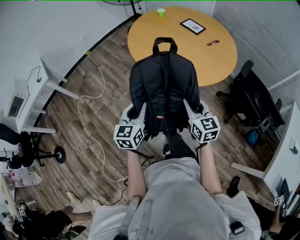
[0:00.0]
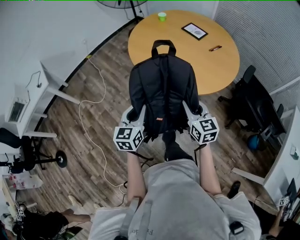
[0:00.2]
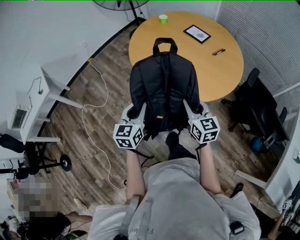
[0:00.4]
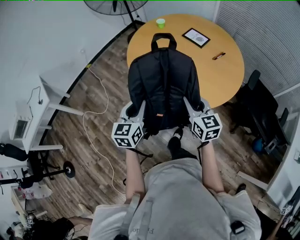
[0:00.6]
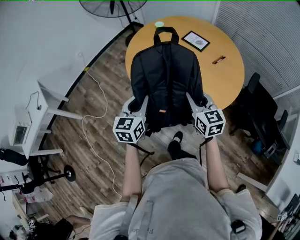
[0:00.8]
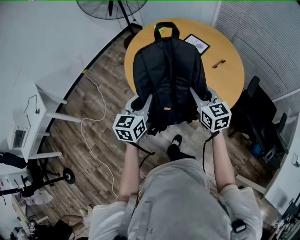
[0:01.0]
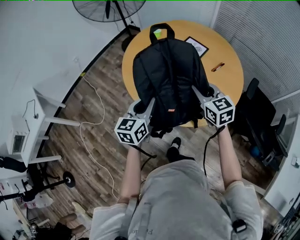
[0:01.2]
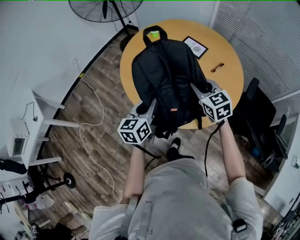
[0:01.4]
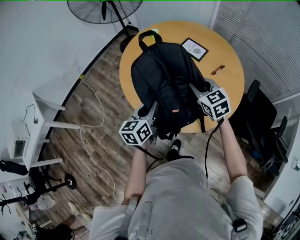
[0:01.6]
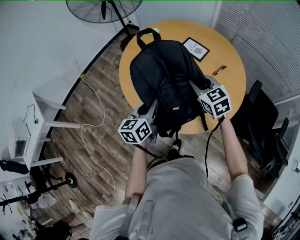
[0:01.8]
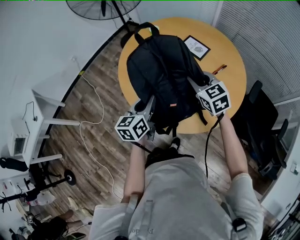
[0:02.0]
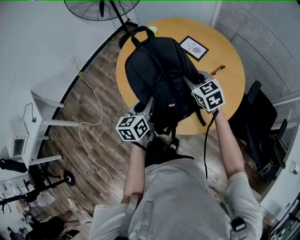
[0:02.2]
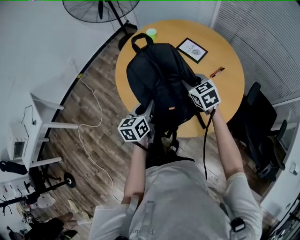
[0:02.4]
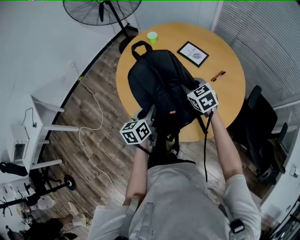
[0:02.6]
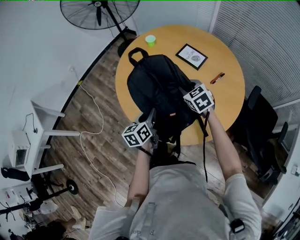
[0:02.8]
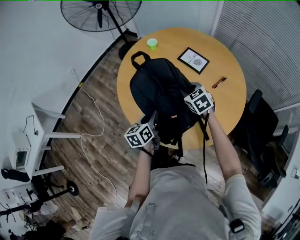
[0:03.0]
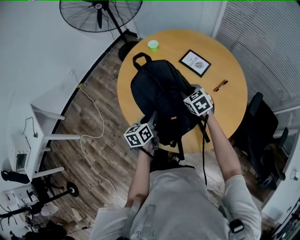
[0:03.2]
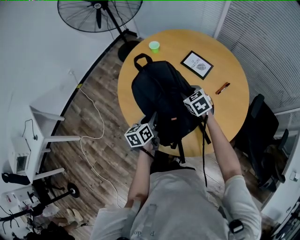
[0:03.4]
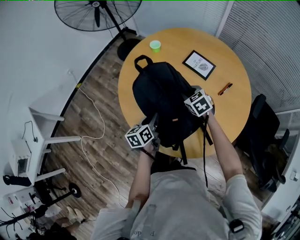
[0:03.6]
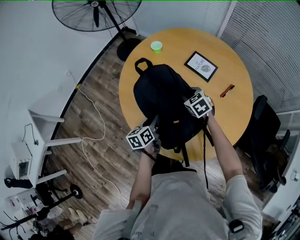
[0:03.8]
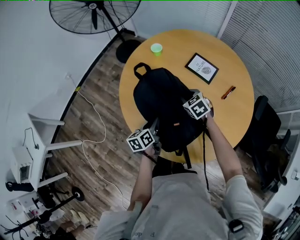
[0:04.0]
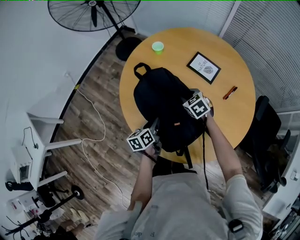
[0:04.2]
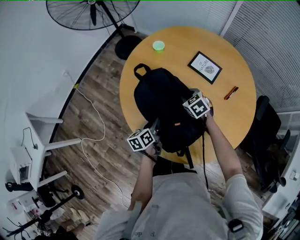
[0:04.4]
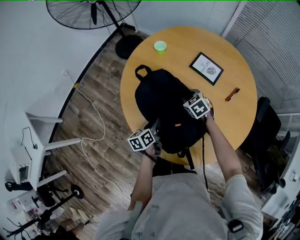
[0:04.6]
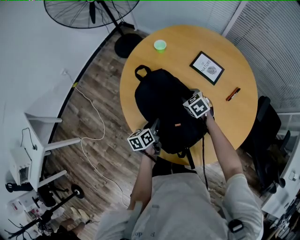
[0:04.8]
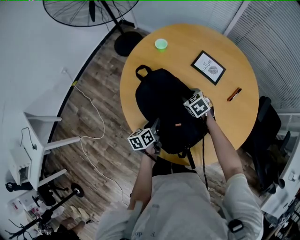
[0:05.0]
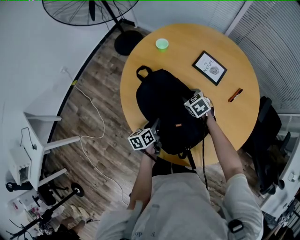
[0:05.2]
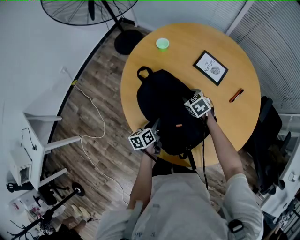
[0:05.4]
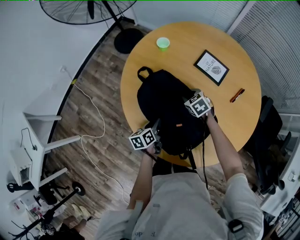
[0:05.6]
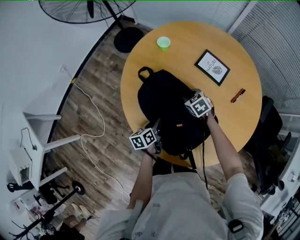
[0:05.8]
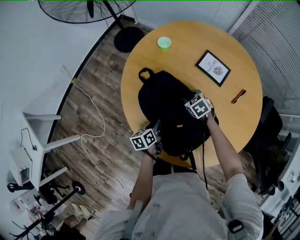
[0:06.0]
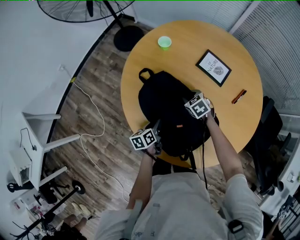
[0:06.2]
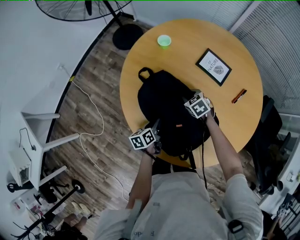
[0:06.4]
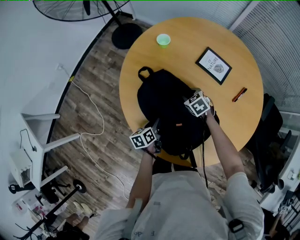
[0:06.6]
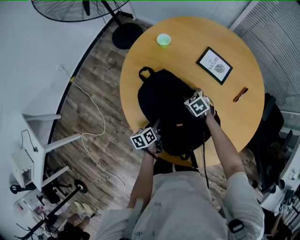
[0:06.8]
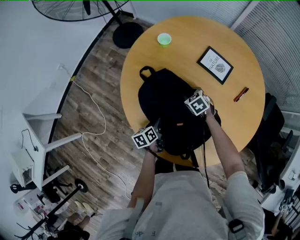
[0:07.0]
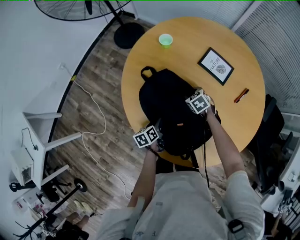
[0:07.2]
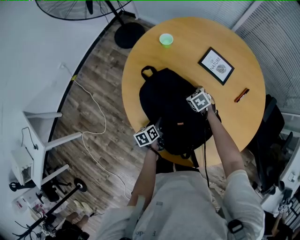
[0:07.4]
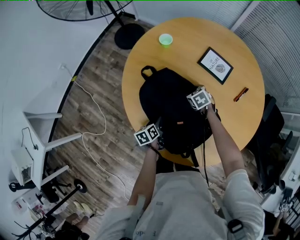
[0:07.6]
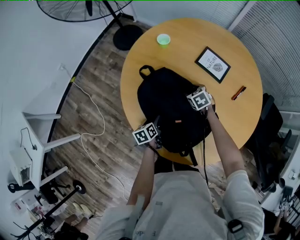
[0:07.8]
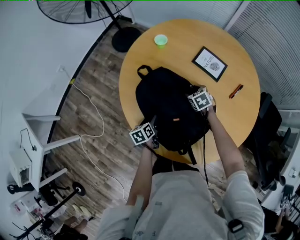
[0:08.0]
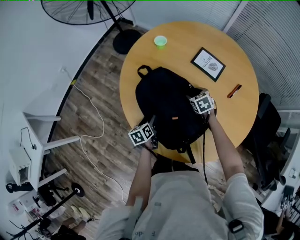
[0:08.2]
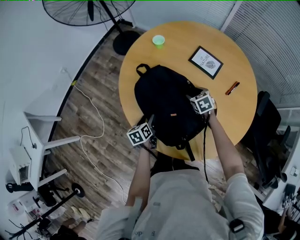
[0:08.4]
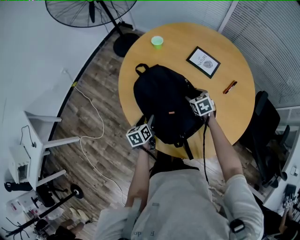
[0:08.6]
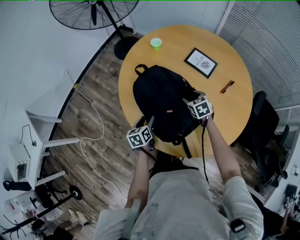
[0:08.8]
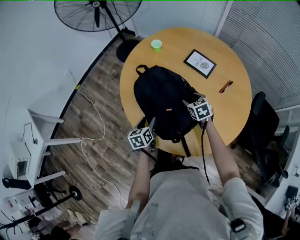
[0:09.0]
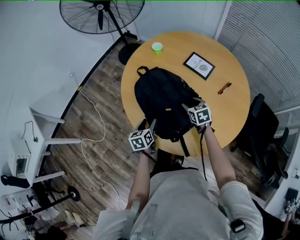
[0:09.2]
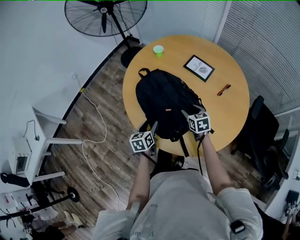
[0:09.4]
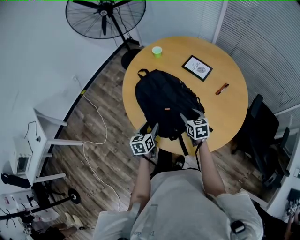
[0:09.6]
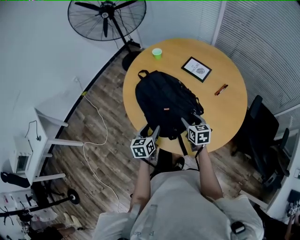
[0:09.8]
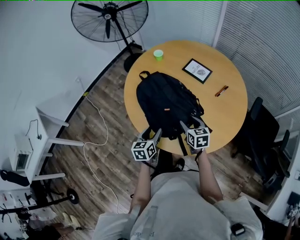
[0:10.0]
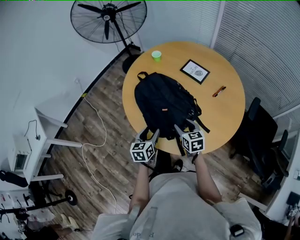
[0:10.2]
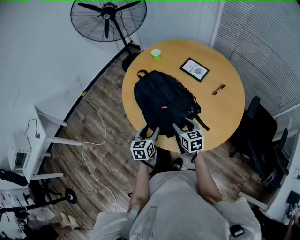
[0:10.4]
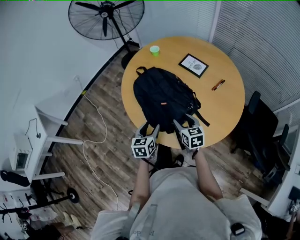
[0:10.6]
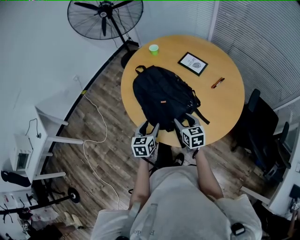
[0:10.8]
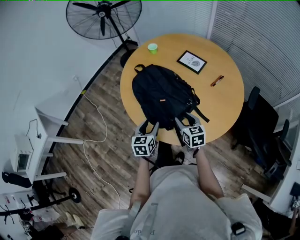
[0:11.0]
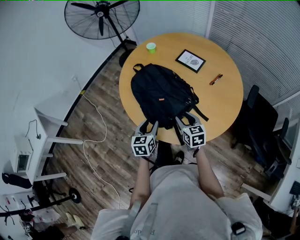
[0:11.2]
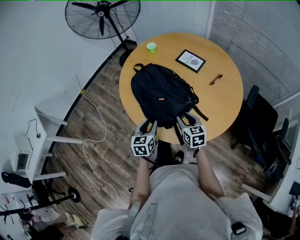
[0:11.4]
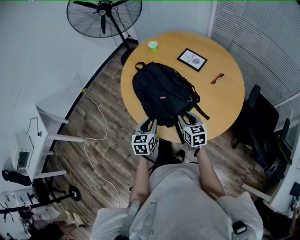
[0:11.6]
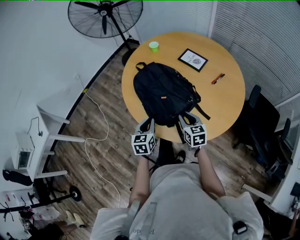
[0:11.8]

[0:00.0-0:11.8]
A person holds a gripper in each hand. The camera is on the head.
0:00.0 to 0:01.4: The grippers both shift forward by some 35 cm.
0:01.4 to 0:03.0: The left gripper goes roughly 15 cm downward and forward, while the right gripper heads forward and downward, covering about 20 cm.
0:03.0 to 0:04.4: The right gripper is displaced forward, downward and to the left by roughly 15 cm. Meanwhile the left gripper moves forward and downward, about 15 cm.
0:04.4 to 0:06.0: The two grippers go about 5 cm downward.
0:06.0 to 0:07.4: The left gripper shifts approximately 5 cm downward.
0:07.4 to 0:08.8: Both grippers move upward and backward, roughly 15 cm.
0:08.8 to 0:10.4: The left gripper is displaced backward, upward and to the right by approximately 15 cm. The right gripper travels backward and upward by some 20 cm, and turns by some 20 degrees.
0:10.4 to 0:11.8: The right gripper closes up. Meanwhile the left gripper closes up.

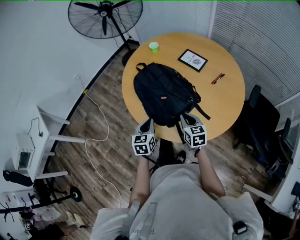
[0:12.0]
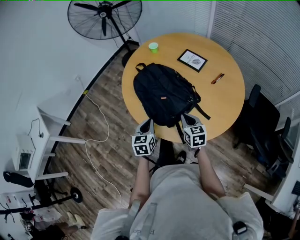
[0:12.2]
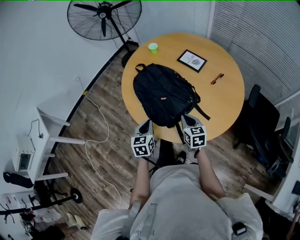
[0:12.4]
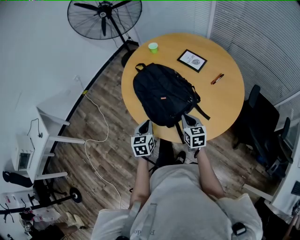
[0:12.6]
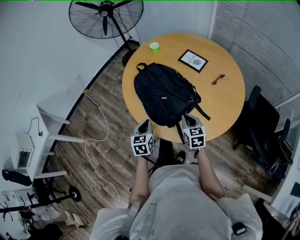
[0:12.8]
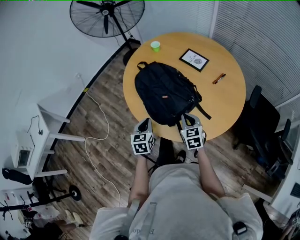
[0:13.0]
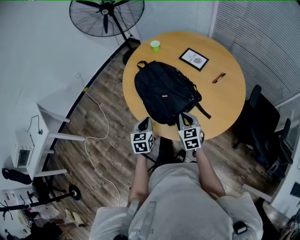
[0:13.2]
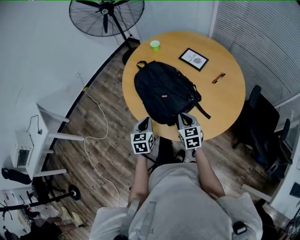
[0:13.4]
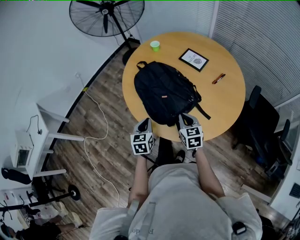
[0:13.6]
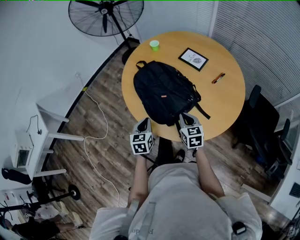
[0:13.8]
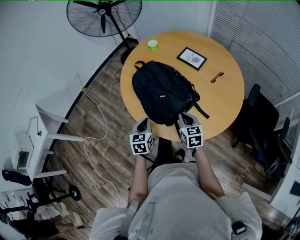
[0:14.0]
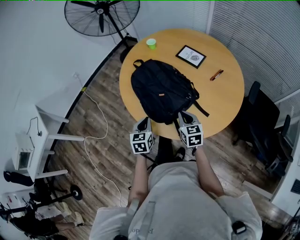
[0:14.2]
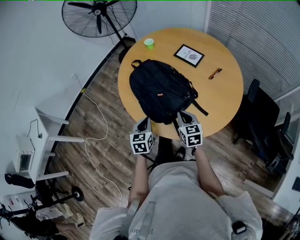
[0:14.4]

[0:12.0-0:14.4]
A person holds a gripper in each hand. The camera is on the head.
0:12.0 to 0:14.4: There are only small adjustments of the grippers.

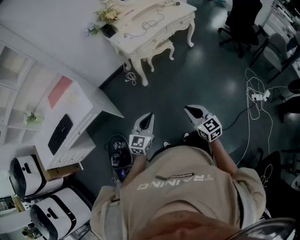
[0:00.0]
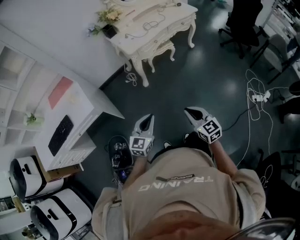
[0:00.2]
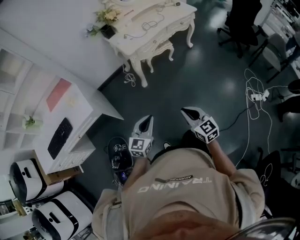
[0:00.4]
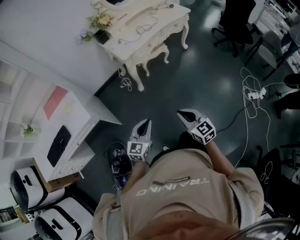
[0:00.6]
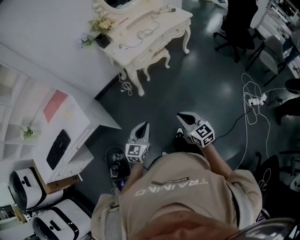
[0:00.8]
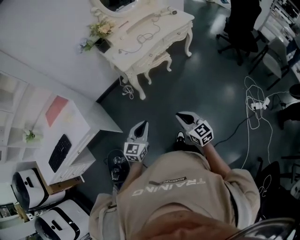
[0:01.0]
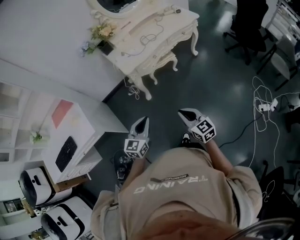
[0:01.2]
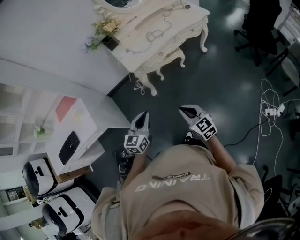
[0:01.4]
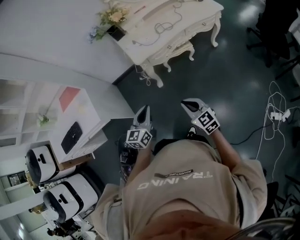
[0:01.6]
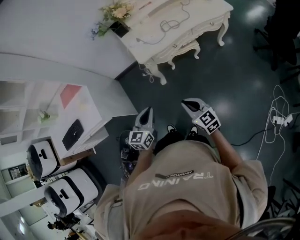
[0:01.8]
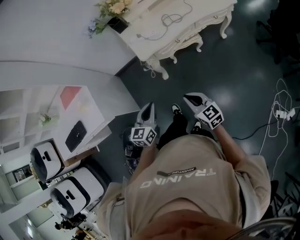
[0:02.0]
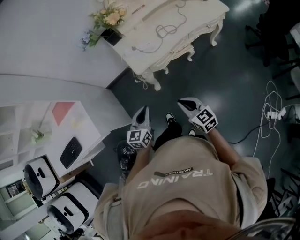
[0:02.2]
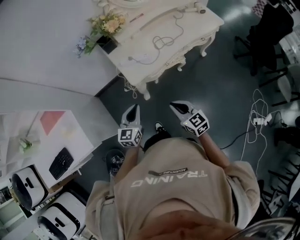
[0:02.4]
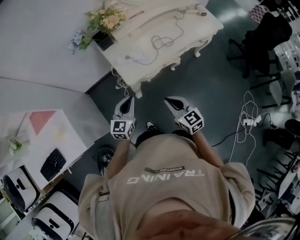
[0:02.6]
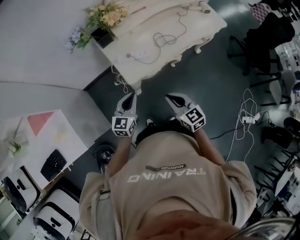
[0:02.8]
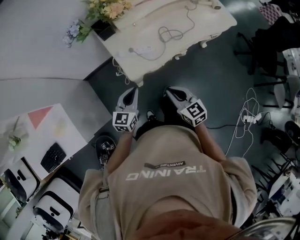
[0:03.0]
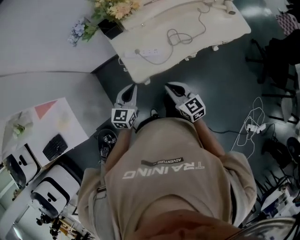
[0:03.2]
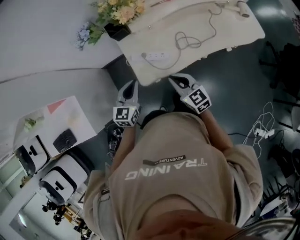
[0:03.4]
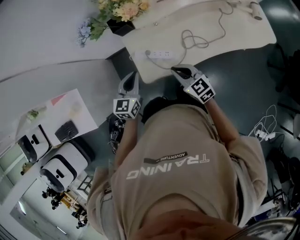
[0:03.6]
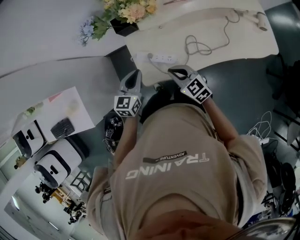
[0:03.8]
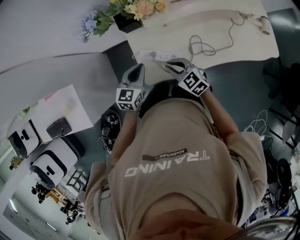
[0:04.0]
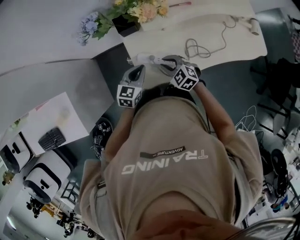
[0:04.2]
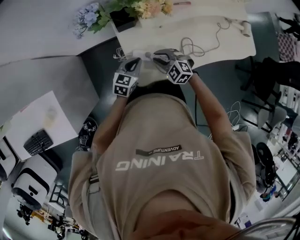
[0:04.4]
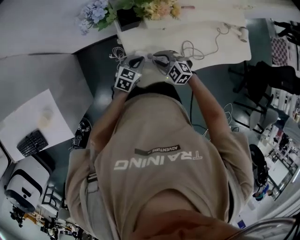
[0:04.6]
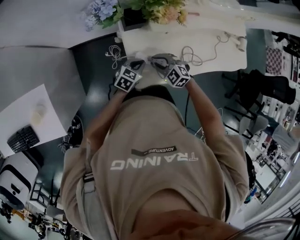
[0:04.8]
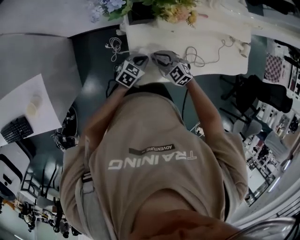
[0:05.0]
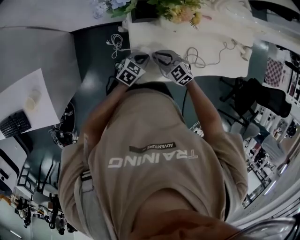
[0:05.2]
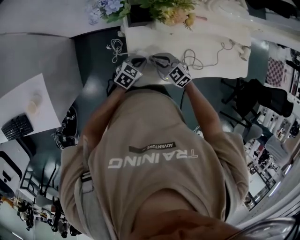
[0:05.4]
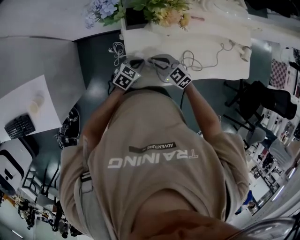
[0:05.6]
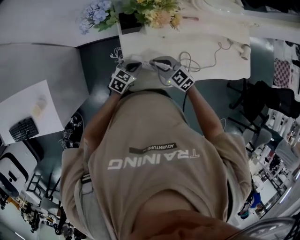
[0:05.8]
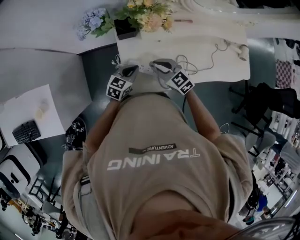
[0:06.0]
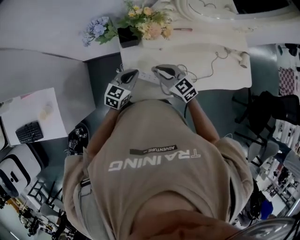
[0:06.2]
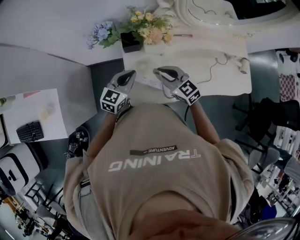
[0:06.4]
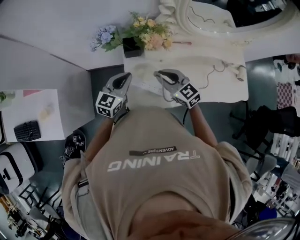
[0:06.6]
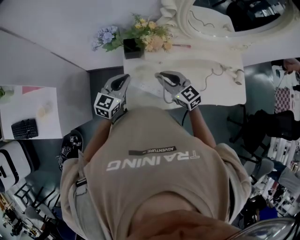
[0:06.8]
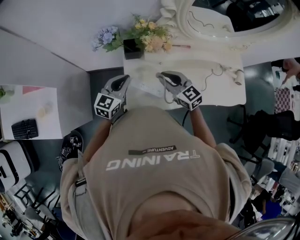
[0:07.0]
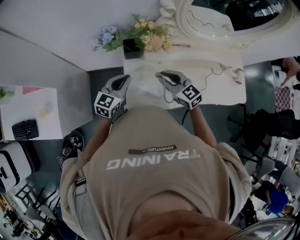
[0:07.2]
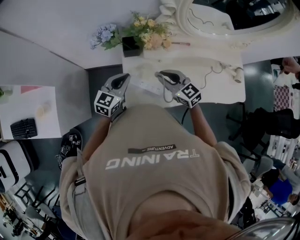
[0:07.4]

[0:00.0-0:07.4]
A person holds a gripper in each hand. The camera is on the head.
0:00.0 to 0:01.4: Both grippers move forward, some 25 cm.
0:01.4 to 0:03.0: The pair of grippers is taken forward, approximately 40 cm.
0:03.0 to 0:04.4: Both grippers move forward and downward, roughly 30 cm. The right gripper rotates around the line of its fingers by some 50 degrees, counterclockwise from behind, and opens its fingers.
0:04.4 to 0:06.0: The right gripper is displaced upward by some 5 cm, and rotates roughly 30 degrees.
0:06.0 to 0:07.4: The grippers both shift upward by about 10 cm. The left gripper rotates some 20 degrees.

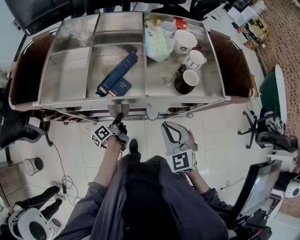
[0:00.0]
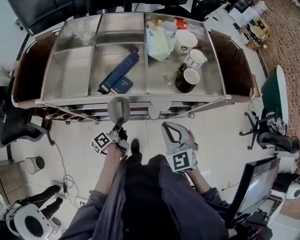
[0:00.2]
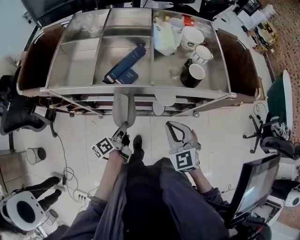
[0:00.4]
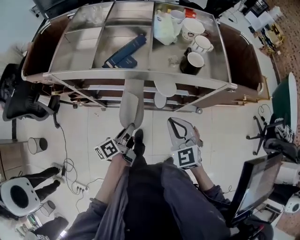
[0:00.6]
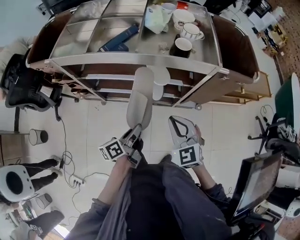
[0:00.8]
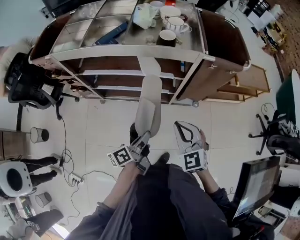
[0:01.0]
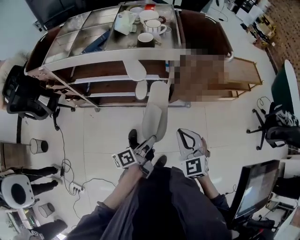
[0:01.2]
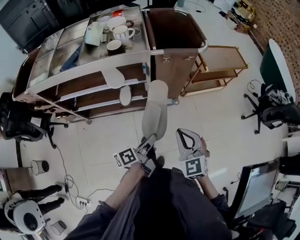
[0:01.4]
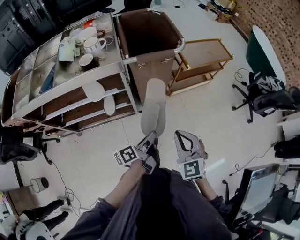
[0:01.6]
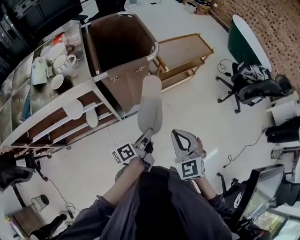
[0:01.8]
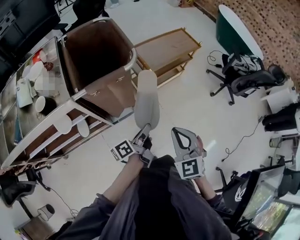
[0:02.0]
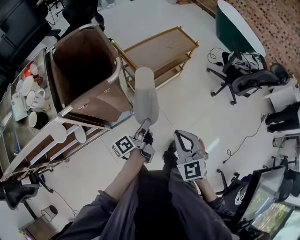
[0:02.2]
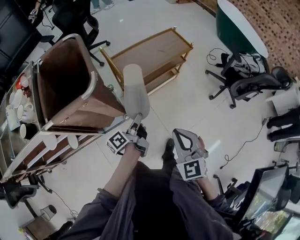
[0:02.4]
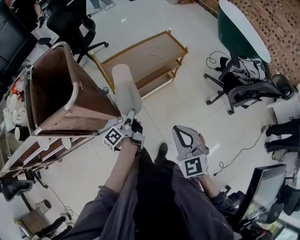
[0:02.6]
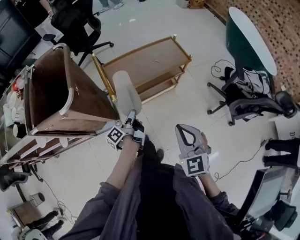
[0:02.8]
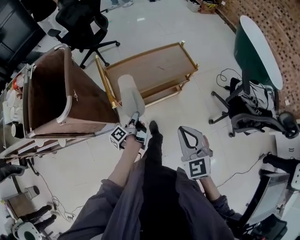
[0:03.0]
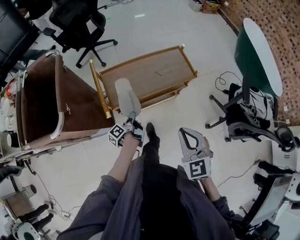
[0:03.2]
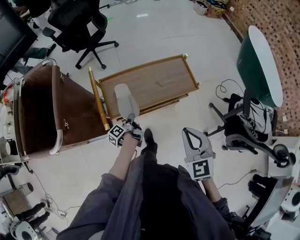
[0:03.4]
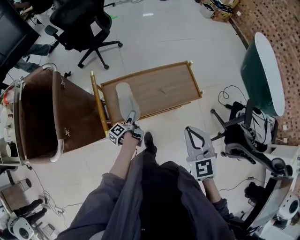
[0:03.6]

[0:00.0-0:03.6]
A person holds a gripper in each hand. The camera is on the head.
0:00.0 to 0:01.8: Both grippers are carried about 60 cm. The left gripper turns by roughly 40 degrees, while the right gripper swivels about 20 degrees.
0:01.8 to 0:03.6: The pair of grippers is taken about 60 cm. The left gripper swivels about 40 degrees, and opens its fingers.
